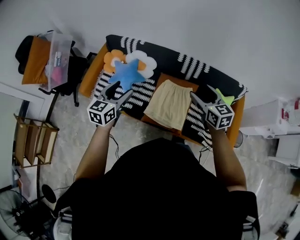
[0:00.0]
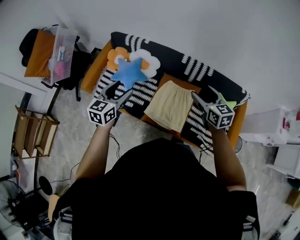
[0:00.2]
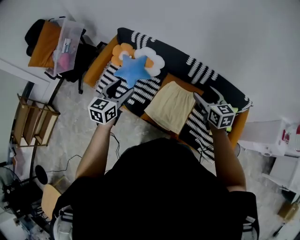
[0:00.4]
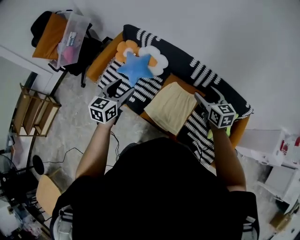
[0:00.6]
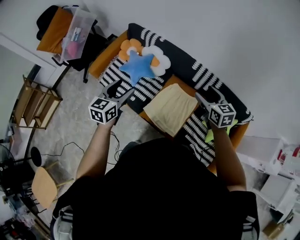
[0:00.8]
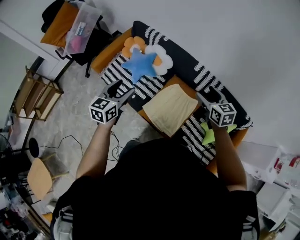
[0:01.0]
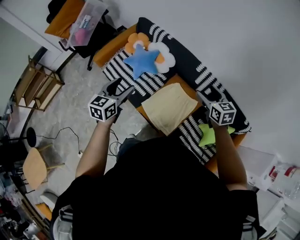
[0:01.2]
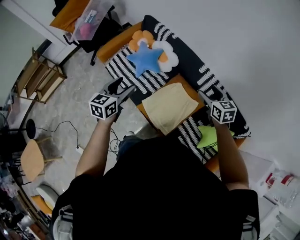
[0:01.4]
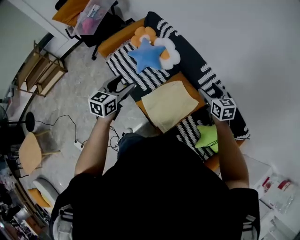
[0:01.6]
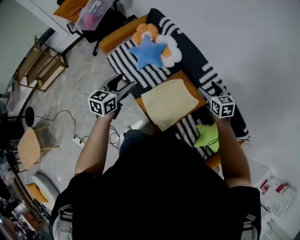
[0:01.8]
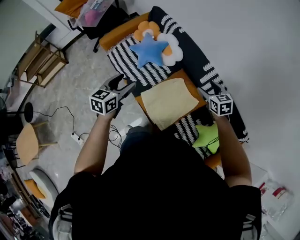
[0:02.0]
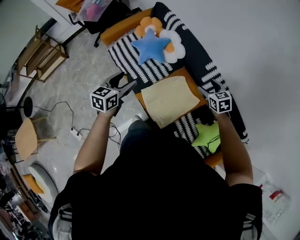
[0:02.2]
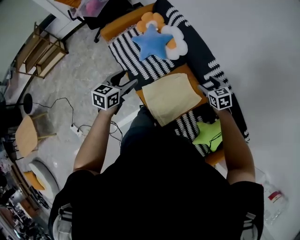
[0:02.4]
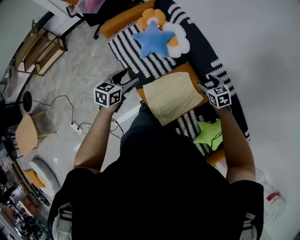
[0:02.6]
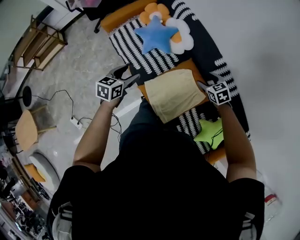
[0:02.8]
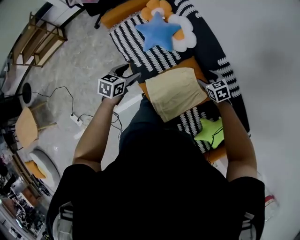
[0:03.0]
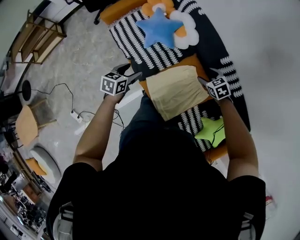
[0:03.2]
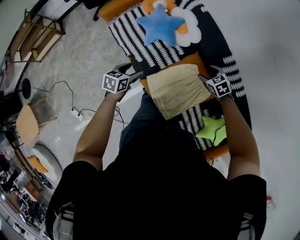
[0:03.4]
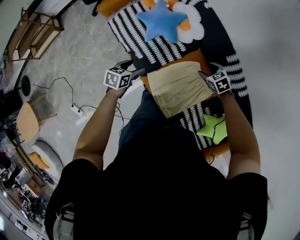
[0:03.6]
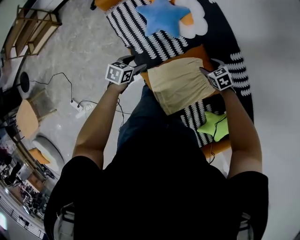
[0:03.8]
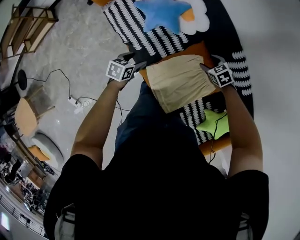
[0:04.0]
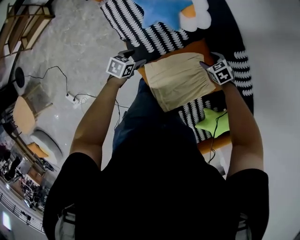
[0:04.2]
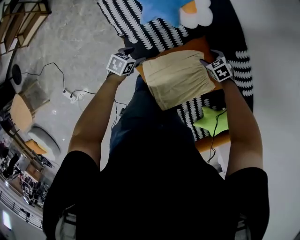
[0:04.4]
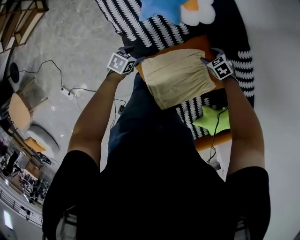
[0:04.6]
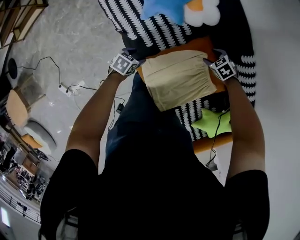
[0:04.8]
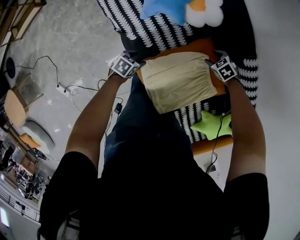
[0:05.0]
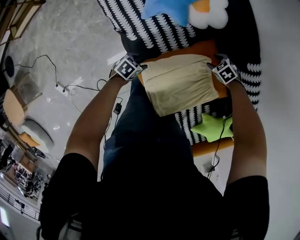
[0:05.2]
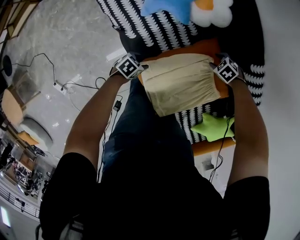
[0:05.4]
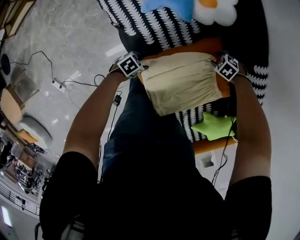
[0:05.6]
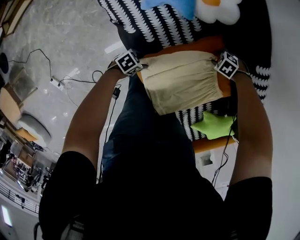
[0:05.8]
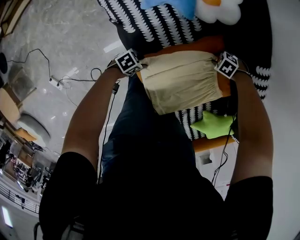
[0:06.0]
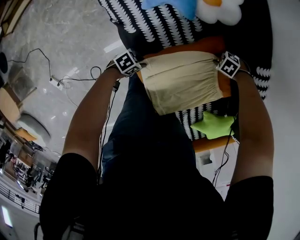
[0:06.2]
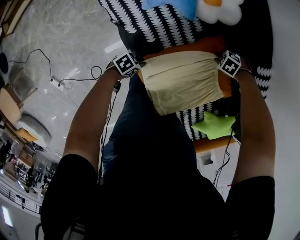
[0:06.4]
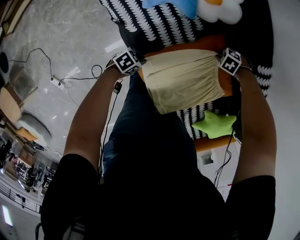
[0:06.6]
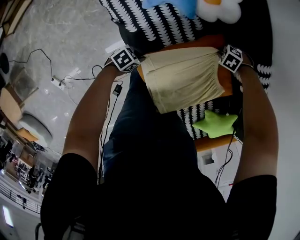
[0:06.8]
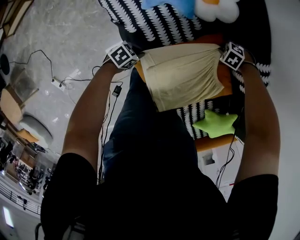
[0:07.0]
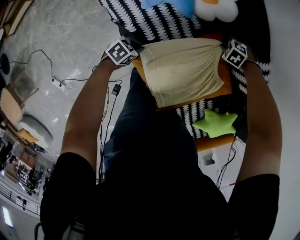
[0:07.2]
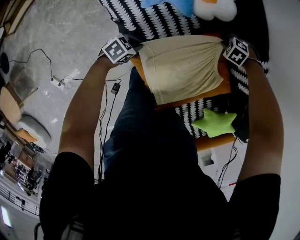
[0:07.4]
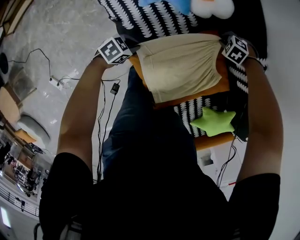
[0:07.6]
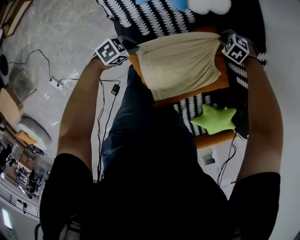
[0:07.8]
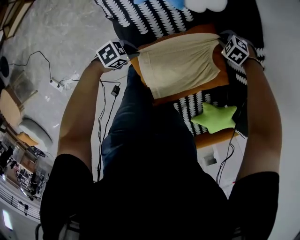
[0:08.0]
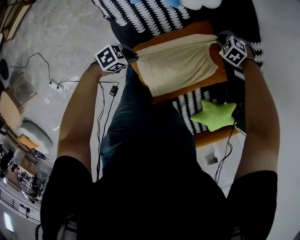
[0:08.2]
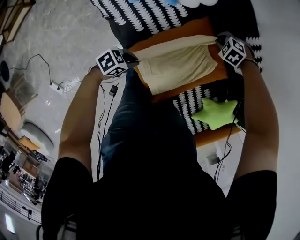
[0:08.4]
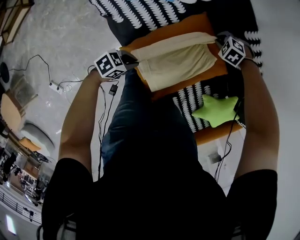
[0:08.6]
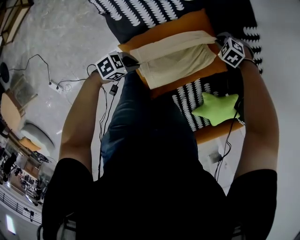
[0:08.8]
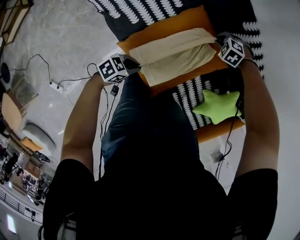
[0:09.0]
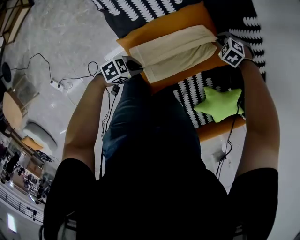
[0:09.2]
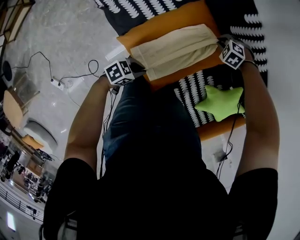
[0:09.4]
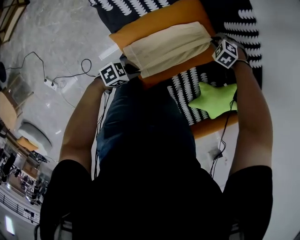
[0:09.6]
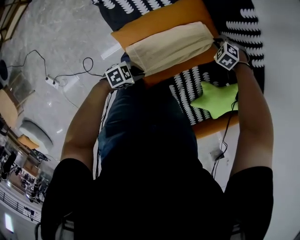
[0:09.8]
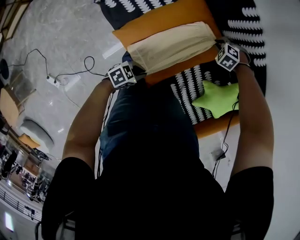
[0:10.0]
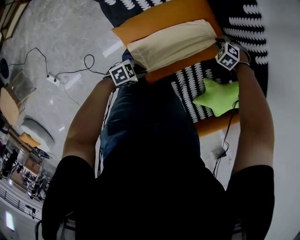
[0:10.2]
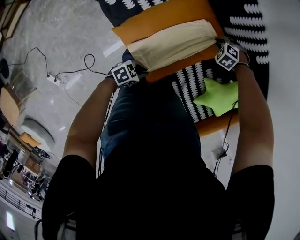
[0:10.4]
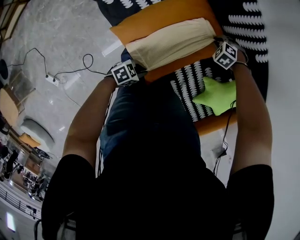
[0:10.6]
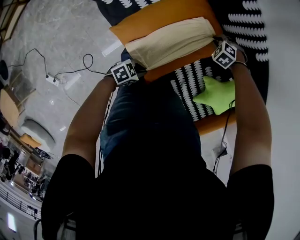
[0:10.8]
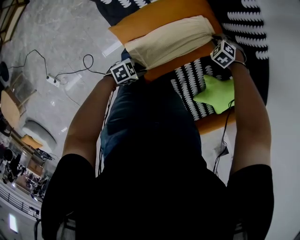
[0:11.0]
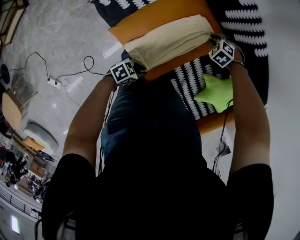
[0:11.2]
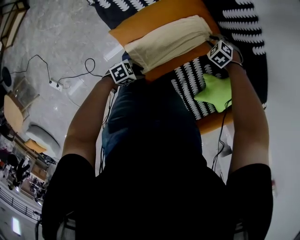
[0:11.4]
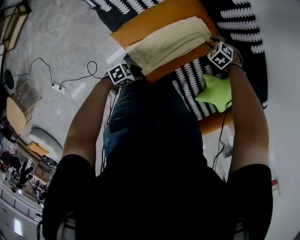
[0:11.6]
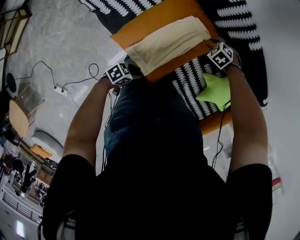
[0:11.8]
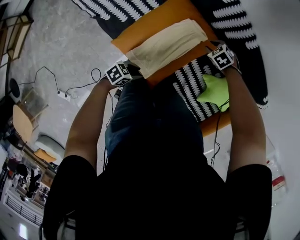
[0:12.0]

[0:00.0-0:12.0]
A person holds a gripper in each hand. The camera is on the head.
0.0 to 1.6 s: The right gripper ends up some 20 cm from where it was, and changes its angle by about 30 degrees, while the left gripper changes place by some 5 cm, and rotates some 30 degrees.
1.6 to 3.0 s: The grippers both shift downward and forward by approximately 20 cm. The right gripper turns by about 30 degrees.
3.0 to 4.4 s: Both grippers travel together downward, about 25 cm. The left gripper rotates some 20 degrees; the right gripper changes its angle by about 20 degrees.
4.4 to 6.0 s: Both grippers move downward, about 20 cm. The left gripper changes its angle by roughly 30 degrees, and closes; the right gripper swivels some 40 degrees, and closes its fingers.
6.0 to 7.6 s: The left gripper moves upward, approximately 5 cm, and closes up. The right gripper moves roughly 10 cm.
7.6 to 9.0 s: The left gripper changes place by approximately 20 cm. The right gripper moves roughly 15 cm.
9.0 to 10.4 s: The right gripper changes place by some 10 cm. The left gripper ends up about 15 cm from where it was.
10.4 to 12.0 s: The right gripper travels upward by approximately 5 cm, and rotates approximately 40 degrees; the left gripper ends up approximately 5 cm from where it was, and opens its fingers.

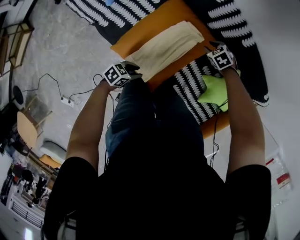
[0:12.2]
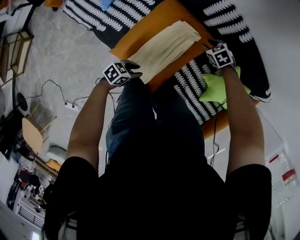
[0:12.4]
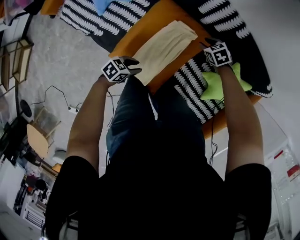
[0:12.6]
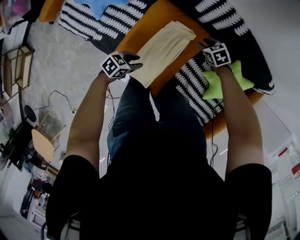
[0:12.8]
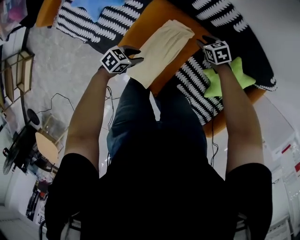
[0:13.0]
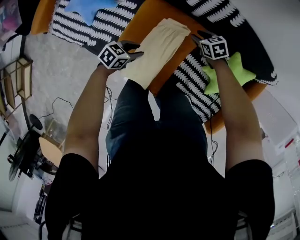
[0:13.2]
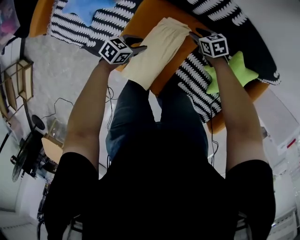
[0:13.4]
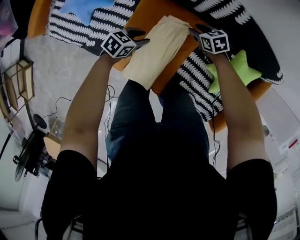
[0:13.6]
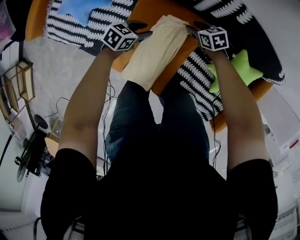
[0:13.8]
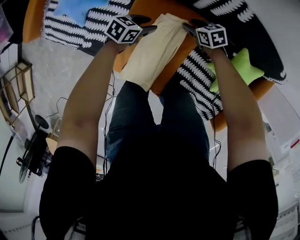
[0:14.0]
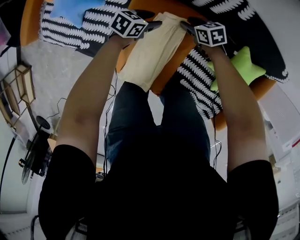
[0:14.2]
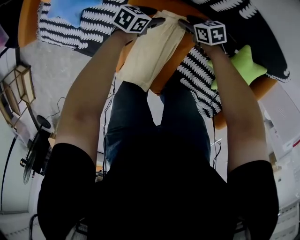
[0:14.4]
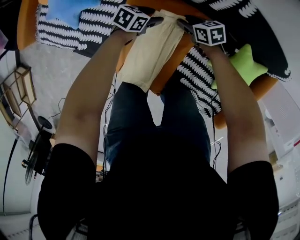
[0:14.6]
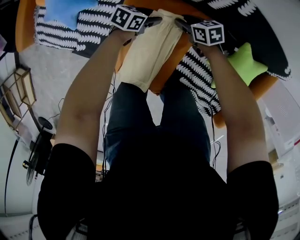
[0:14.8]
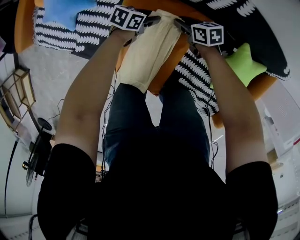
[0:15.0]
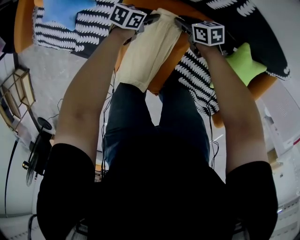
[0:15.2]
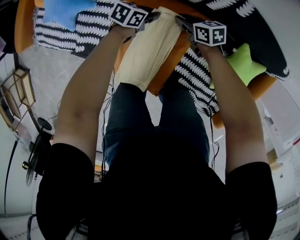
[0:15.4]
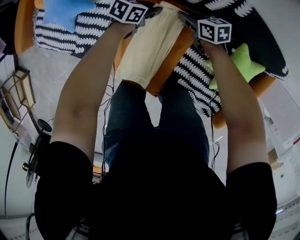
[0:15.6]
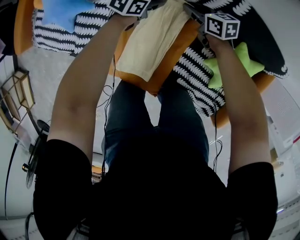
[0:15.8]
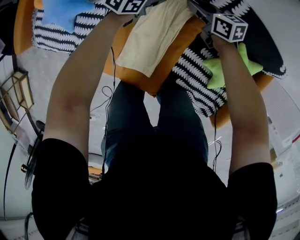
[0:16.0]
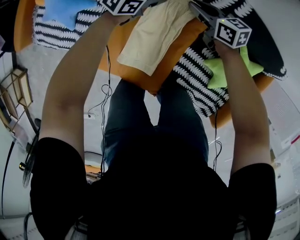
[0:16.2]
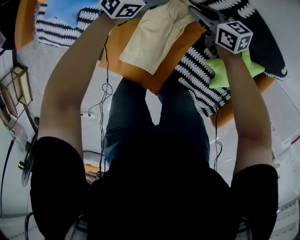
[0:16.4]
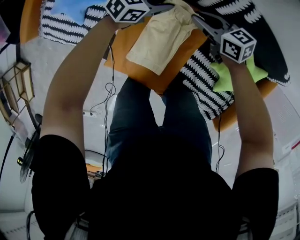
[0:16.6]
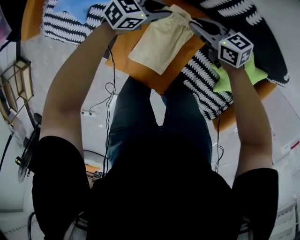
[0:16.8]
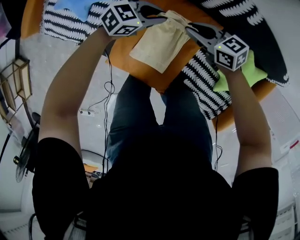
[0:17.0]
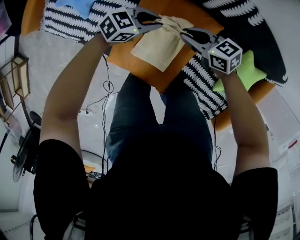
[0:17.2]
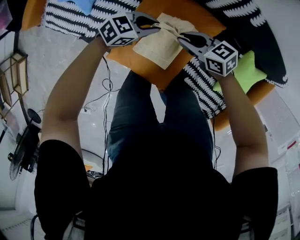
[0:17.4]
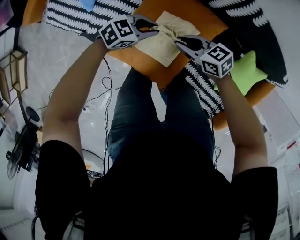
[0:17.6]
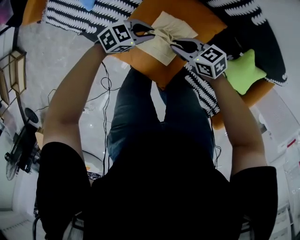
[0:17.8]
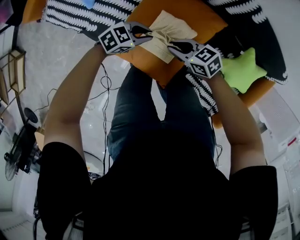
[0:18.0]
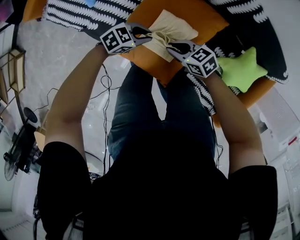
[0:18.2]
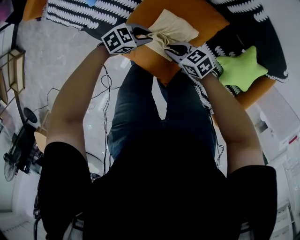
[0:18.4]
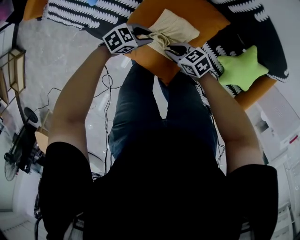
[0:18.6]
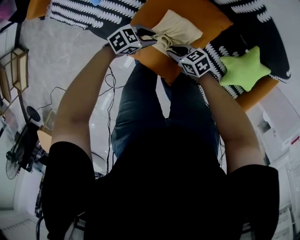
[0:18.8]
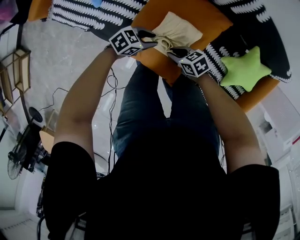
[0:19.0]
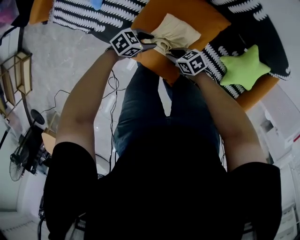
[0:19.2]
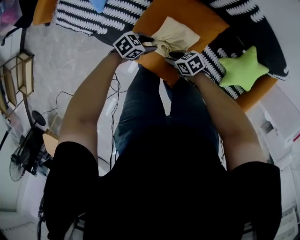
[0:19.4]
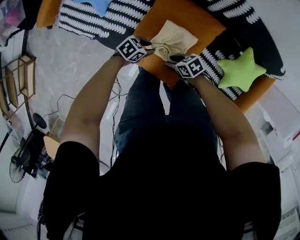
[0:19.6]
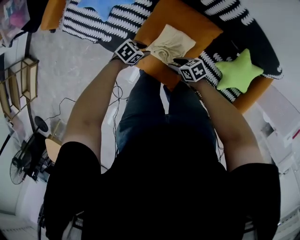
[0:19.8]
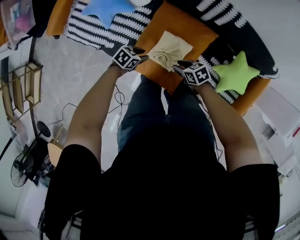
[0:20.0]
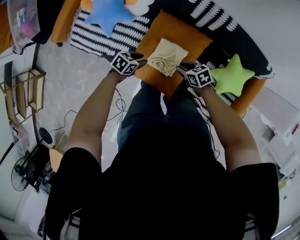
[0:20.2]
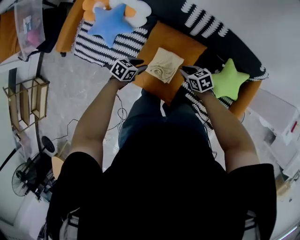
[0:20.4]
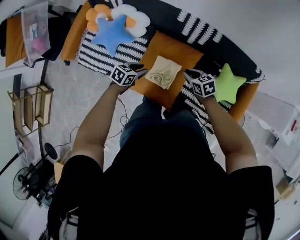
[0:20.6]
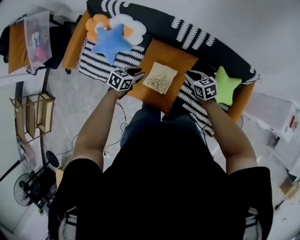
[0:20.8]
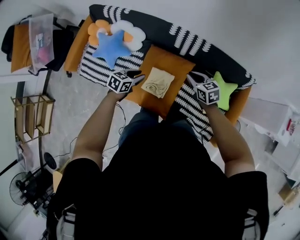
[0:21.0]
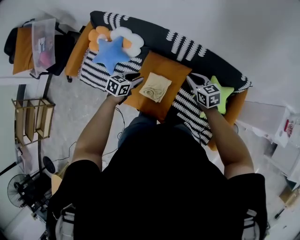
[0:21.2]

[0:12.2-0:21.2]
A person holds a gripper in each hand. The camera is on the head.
12.2 to 13.8 s: The right gripper heads downward, covering roughly 5 cm, and changes its angle by roughly 40 degrees; the left gripper changes place by about 25 cm.
13.8 to 15.2 s: The right gripper changes its angle by roughly 20 degrees; the left gripper changes place by about 10 cm.
15.2 to 16.6 s: Both grippers travel together upward, approximately 15 cm. The right gripper changes its angle by some 20 degrees; the left gripper changes its angle by approximately 30 degrees.
16.6 to 18.2 s: The left gripper ends up roughly 25 cm from where it was. The right gripper moves roughly 25 cm, and turns by about 20 degrees.
18.2 to 19.8 s: The left gripper shifts by some 5 cm, and turns by approximately 20 degrees.
19.8 to 21.2 s: The grippers both shift upward by roughly 30 cm. The right gripper rotates roughly 40 degrees. Meanwhile the left gripper rotates some 30 degrees.

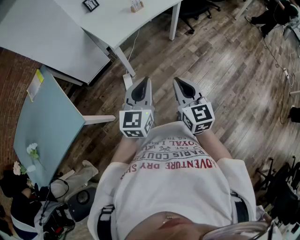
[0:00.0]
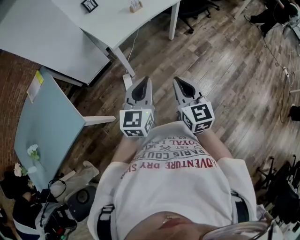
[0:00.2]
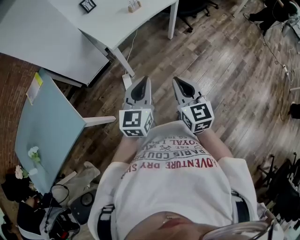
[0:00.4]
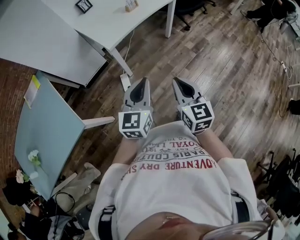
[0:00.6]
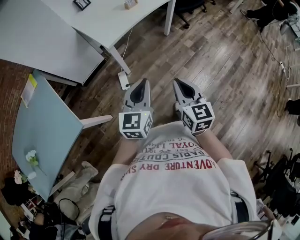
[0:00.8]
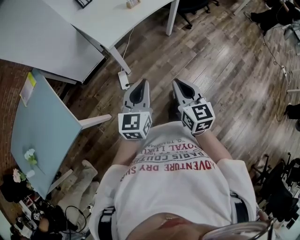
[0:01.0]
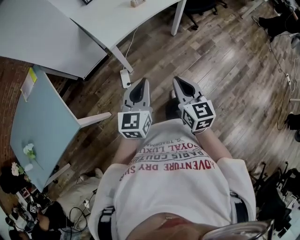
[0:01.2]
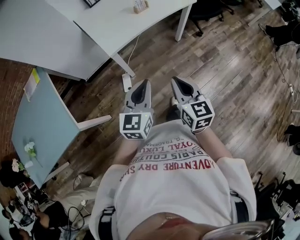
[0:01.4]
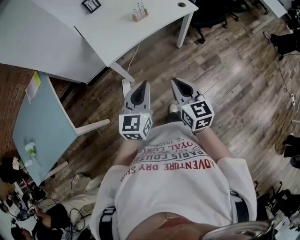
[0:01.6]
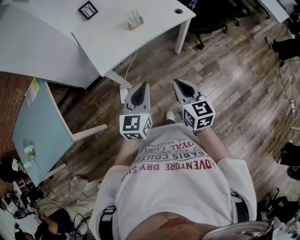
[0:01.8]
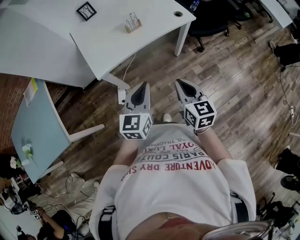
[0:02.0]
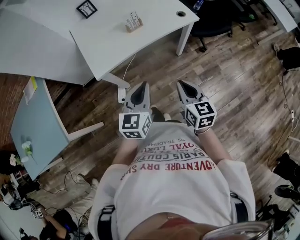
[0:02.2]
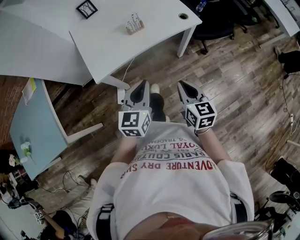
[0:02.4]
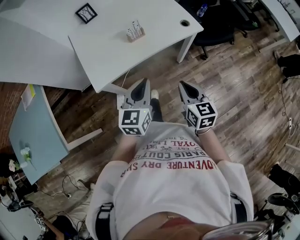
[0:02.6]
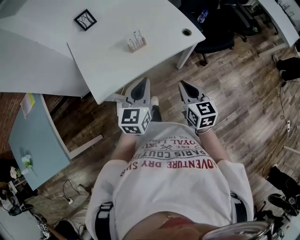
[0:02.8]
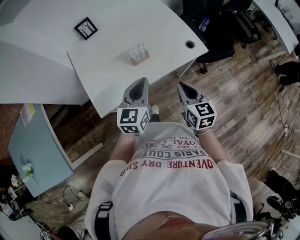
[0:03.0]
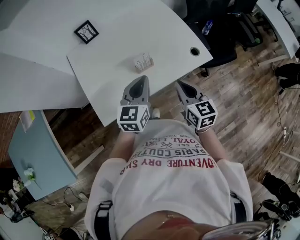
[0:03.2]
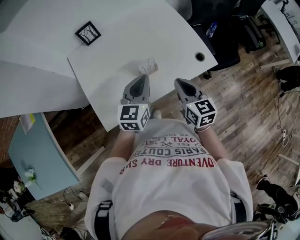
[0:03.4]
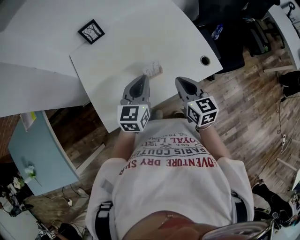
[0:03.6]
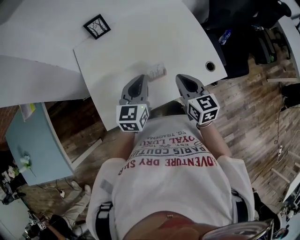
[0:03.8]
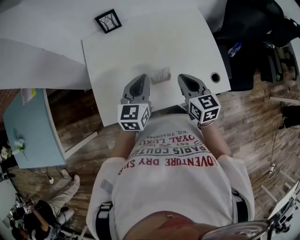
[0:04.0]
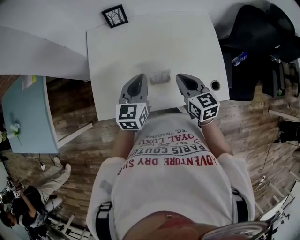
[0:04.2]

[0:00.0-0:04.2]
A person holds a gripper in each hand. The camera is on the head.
0.0 to 1.4 s: Both grippers move forward, some 15 cm.
1.4 to 2.8 s: The right gripper goes roughly 35 cm forward and to the right. Meanwhile the left gripper travels forward by approximately 30 cm.
2.8 to 4.2 s: The left gripper moves roughly 30 cm, and changes its angle by about 30 degrees, while the right gripper ends up roughly 35 cm from where it was, and turns by approximately 30 degrees.
